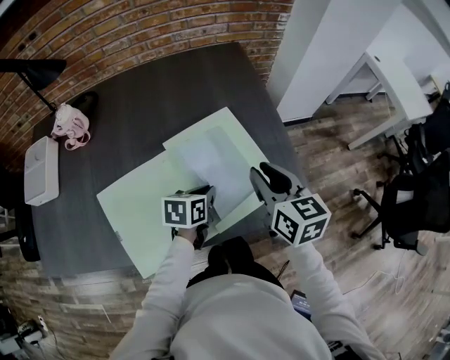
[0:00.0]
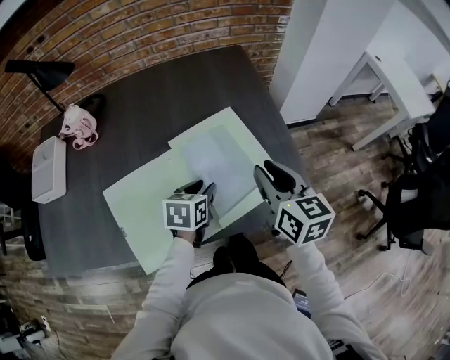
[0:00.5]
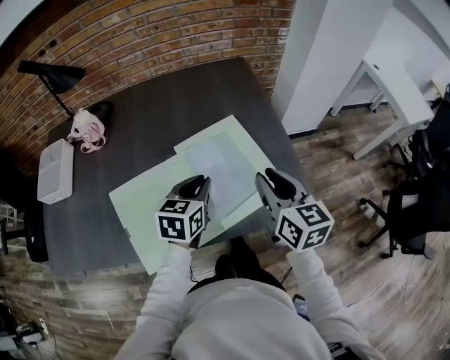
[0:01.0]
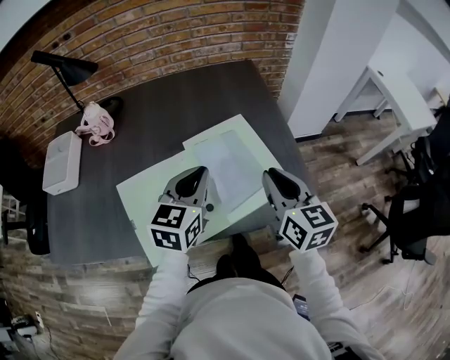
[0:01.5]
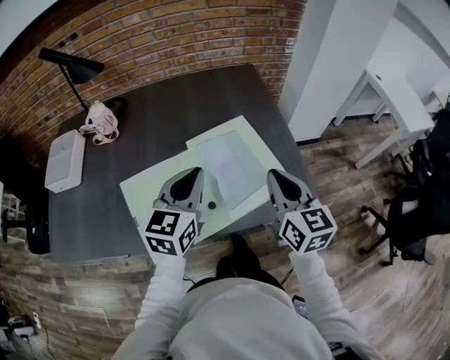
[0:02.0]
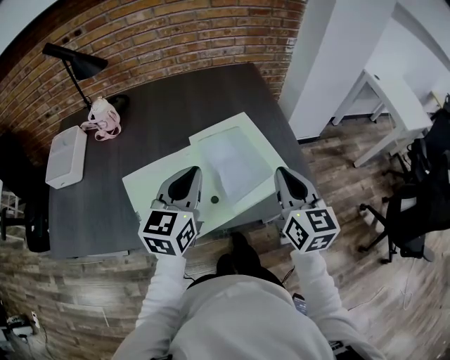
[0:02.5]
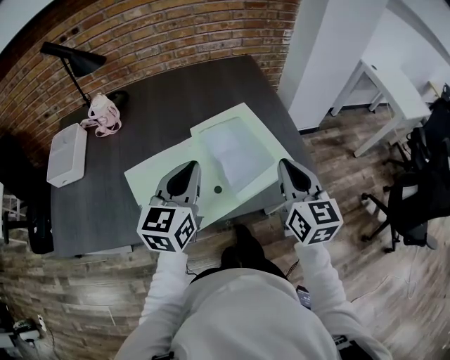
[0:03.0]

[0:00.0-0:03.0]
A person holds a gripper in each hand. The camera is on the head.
0:00.0 to 0:01.5: The right gripper shifts some 5 cm backward; the left gripper is displaced upward by some 20 cm, swivels about 40 degrees, and opens, then closes again.
0:01.5 to 0:03.0: The left gripper heads backward and to the left, covering roughly 10 cm. The right gripper moves approximately 5 cm.

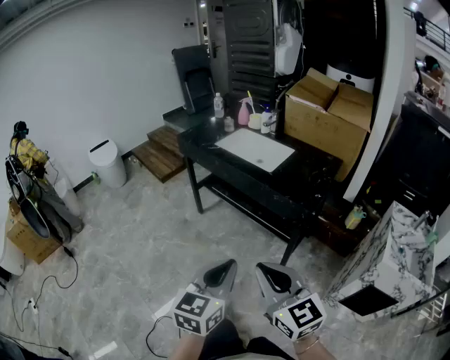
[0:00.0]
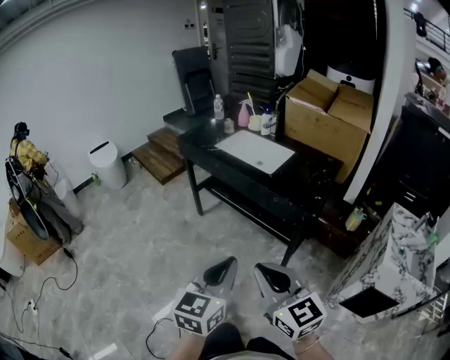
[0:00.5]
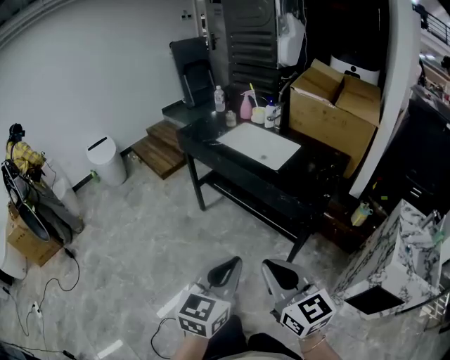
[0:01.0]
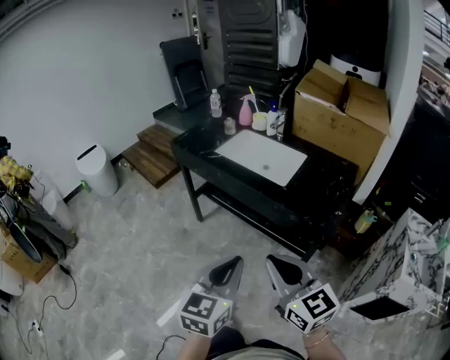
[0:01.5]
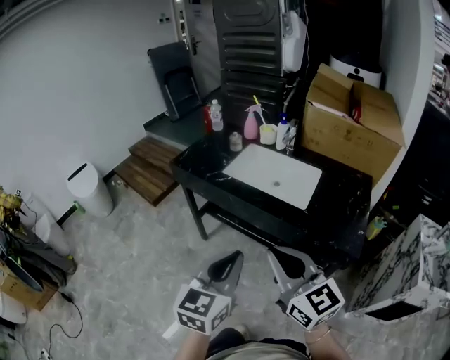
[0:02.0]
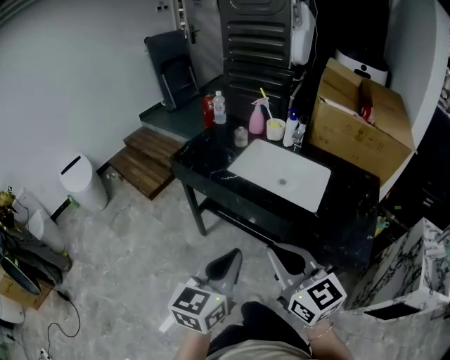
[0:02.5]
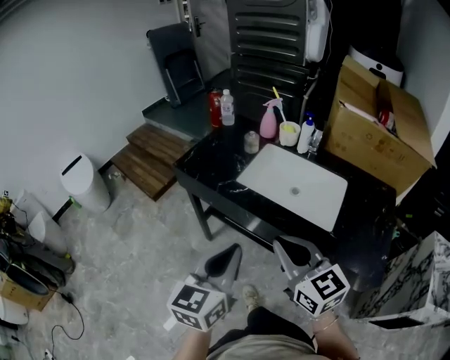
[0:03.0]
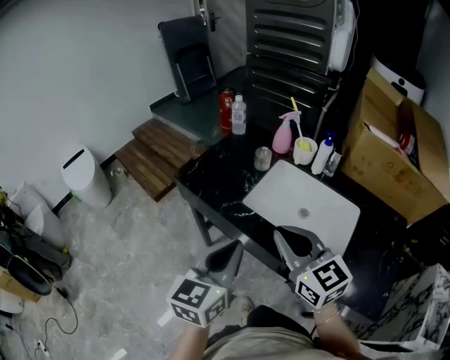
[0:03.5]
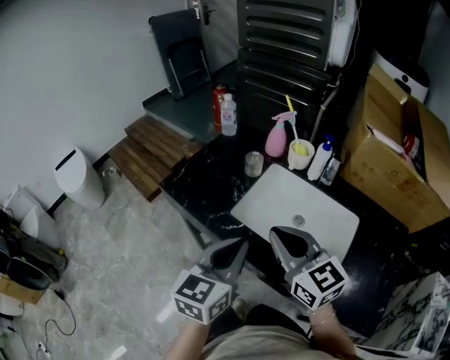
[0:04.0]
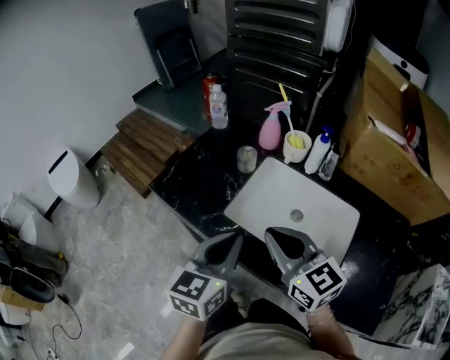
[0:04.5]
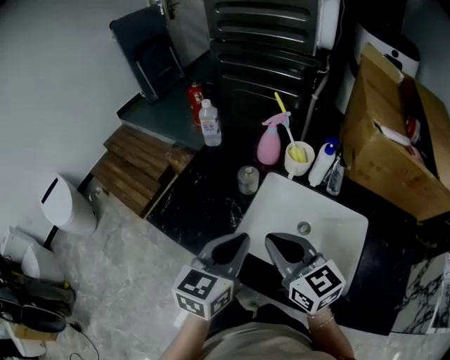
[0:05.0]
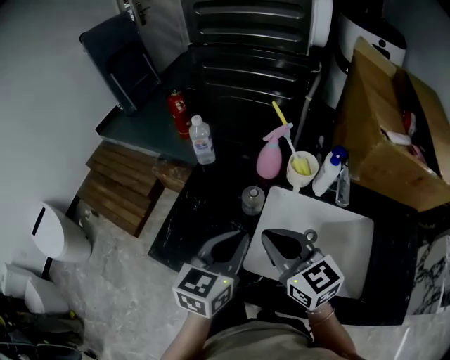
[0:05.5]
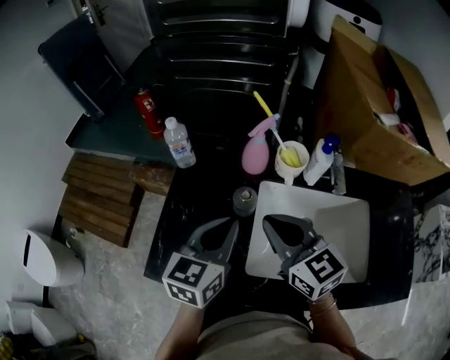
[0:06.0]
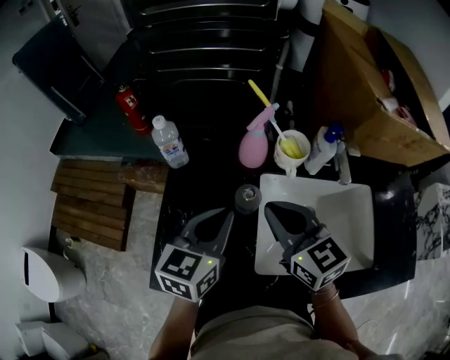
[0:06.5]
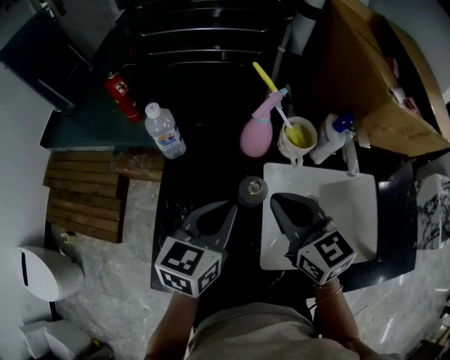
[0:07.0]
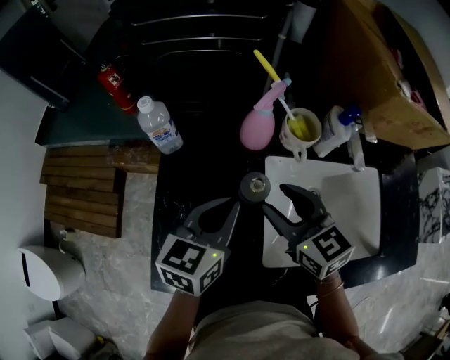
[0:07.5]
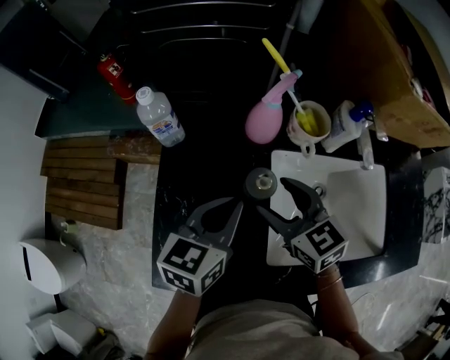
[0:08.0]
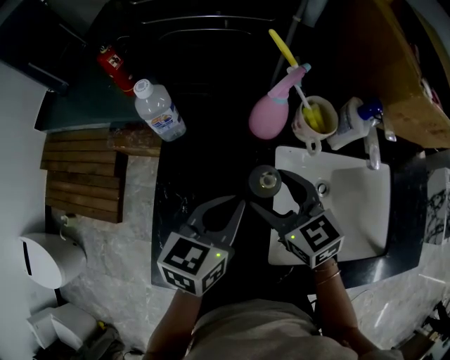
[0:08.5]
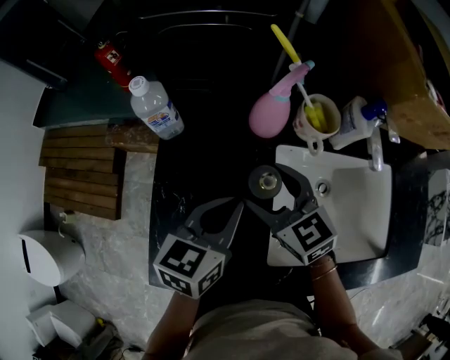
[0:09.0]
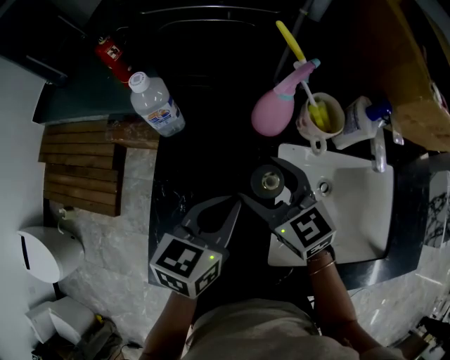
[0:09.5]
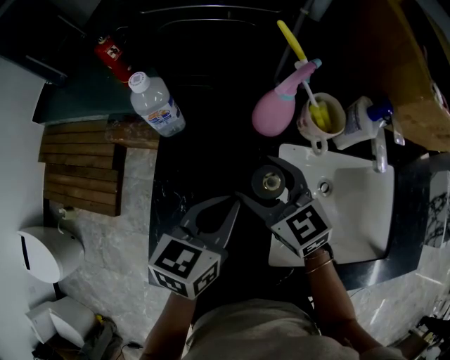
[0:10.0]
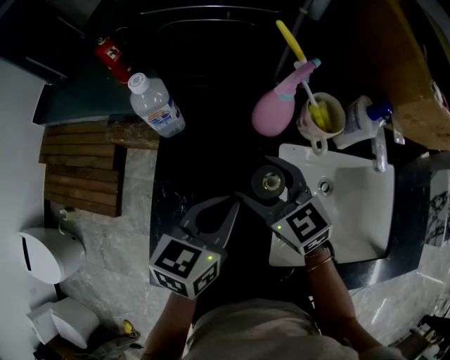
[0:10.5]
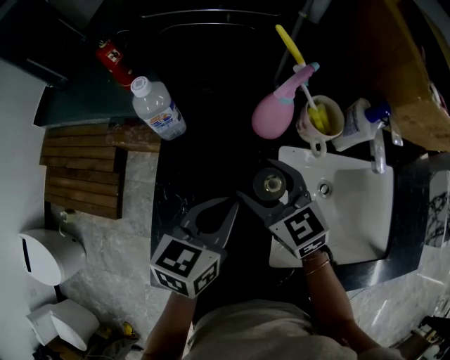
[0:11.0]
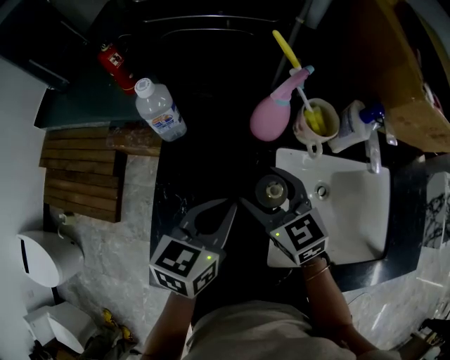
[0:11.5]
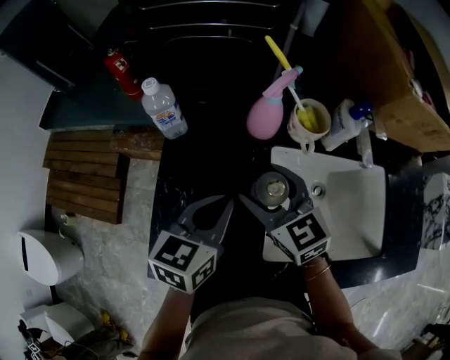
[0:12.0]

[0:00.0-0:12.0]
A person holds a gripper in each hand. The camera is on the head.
0:00.0 to 0:02.0: The grippers both shift forward by approximately 35 cm.
0:02.0 to 0:04.0: The two grippers go approximately 40 cm forward.
0:04.0 to 0:06.0: Both grippers travel together forward, approximately 25 cm. The left gripper changes its angle by about 20 degrees. The right gripper swivels about 20 degrees.
0:06.0 to 0:08.0: Both grippers move downward and forward, roughly 10 cm. The right gripper opens its fingers.
0:08.0 to 0:10.0: The right gripper travels to the left by about 5 cm.
0:10.0 to 0:12.0: The grippers move only a little.

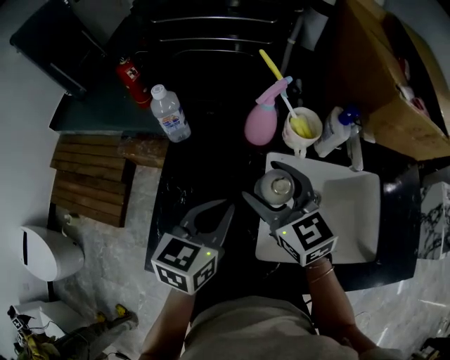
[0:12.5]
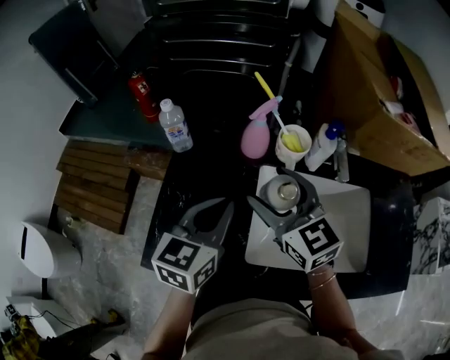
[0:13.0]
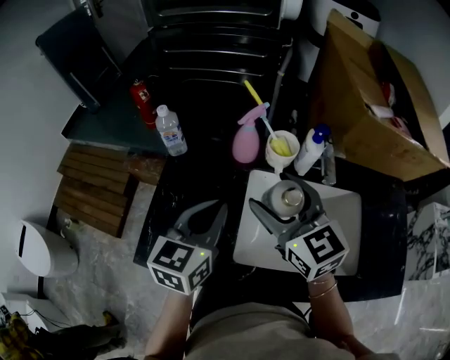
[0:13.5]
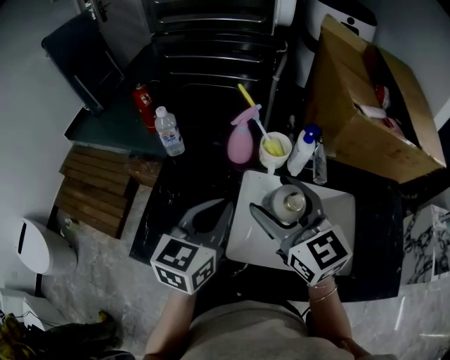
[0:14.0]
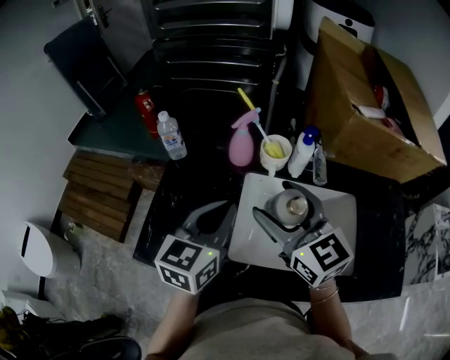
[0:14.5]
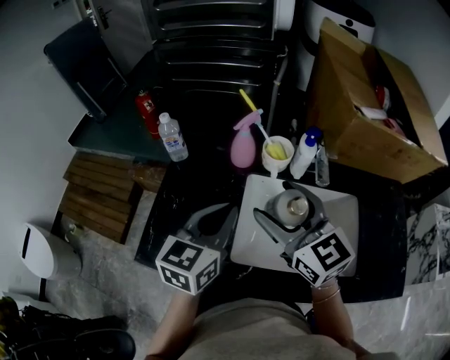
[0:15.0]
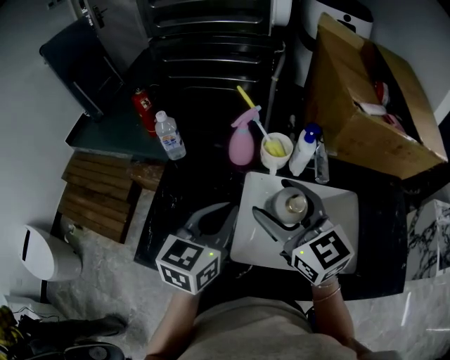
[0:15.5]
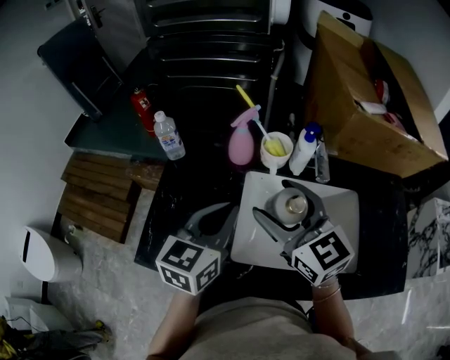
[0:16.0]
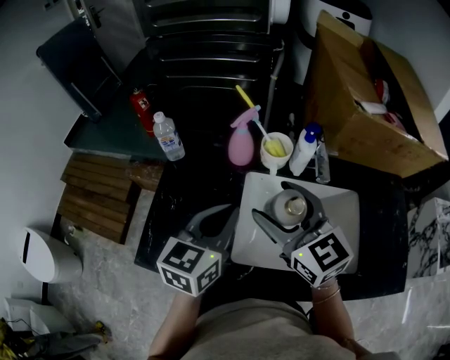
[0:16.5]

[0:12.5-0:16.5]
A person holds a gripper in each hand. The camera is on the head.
0:12.5 to 0:14.5: The left gripper moves upward and to the right, approximately 10 cm, while the right gripper is displaced upward, to the right and backward by about 15 cm.
0:14.5 to 0:16.5: The grippers make only small movements.

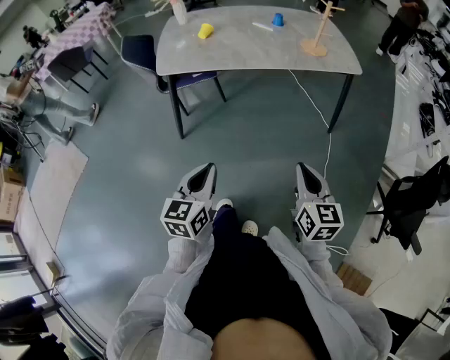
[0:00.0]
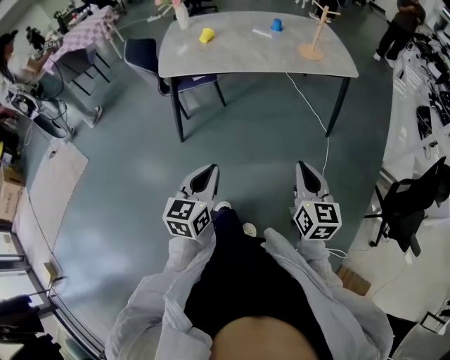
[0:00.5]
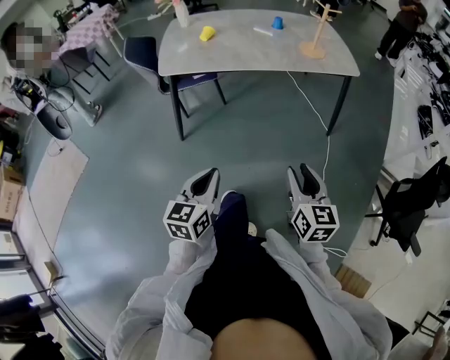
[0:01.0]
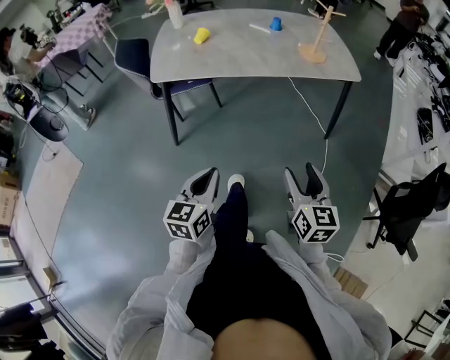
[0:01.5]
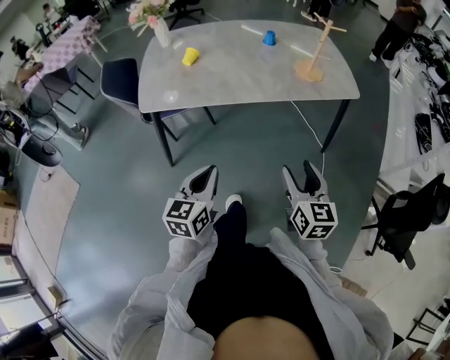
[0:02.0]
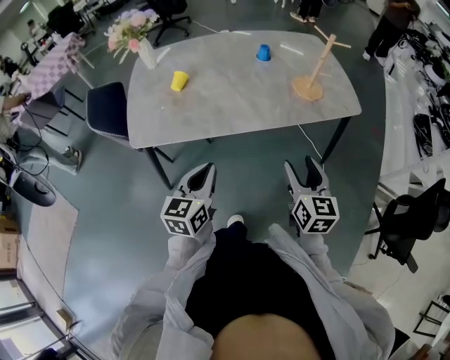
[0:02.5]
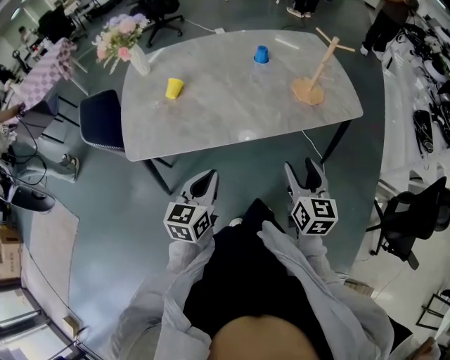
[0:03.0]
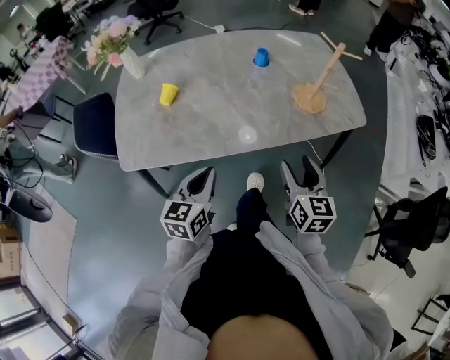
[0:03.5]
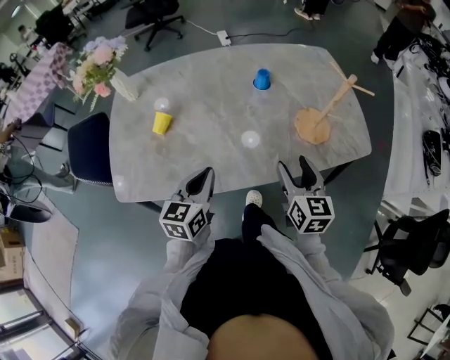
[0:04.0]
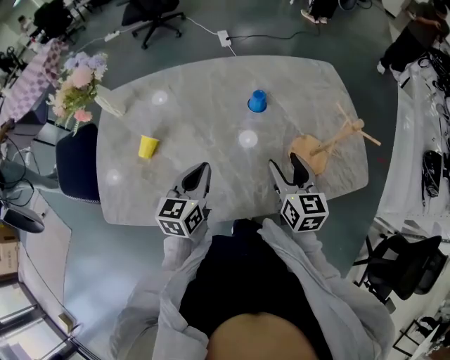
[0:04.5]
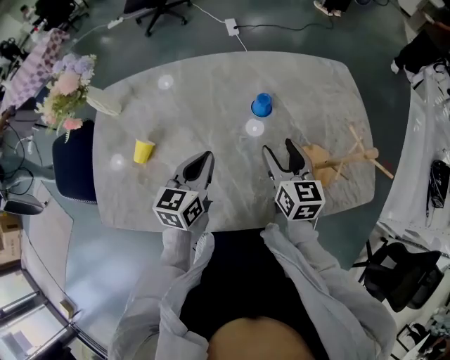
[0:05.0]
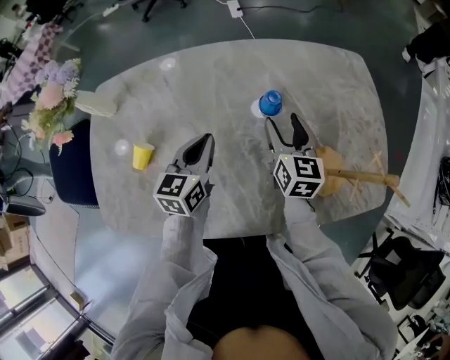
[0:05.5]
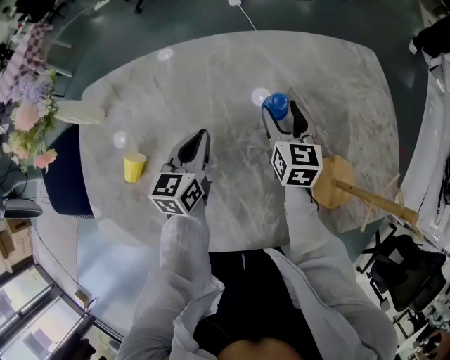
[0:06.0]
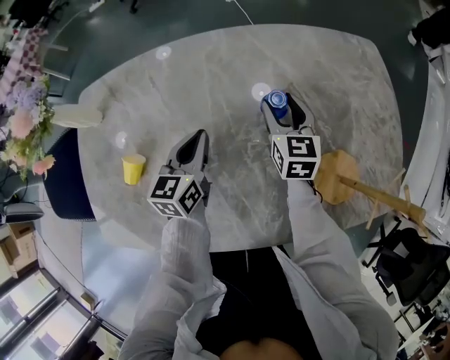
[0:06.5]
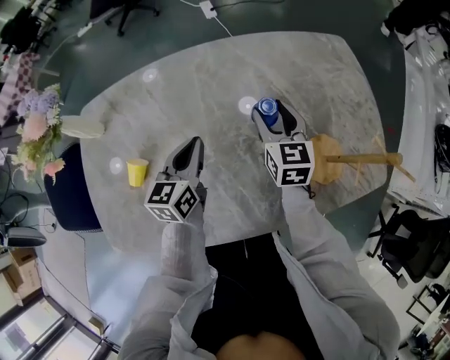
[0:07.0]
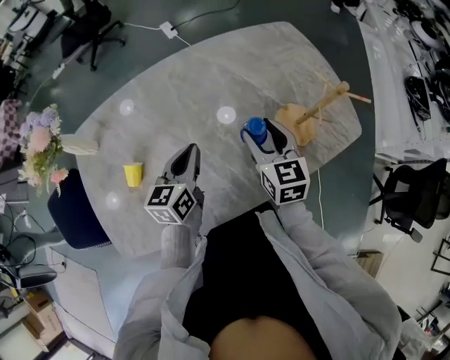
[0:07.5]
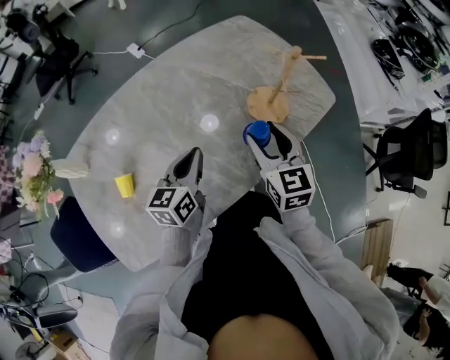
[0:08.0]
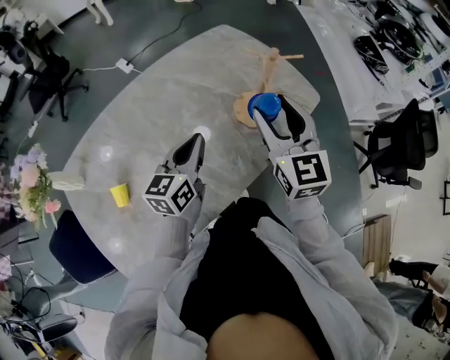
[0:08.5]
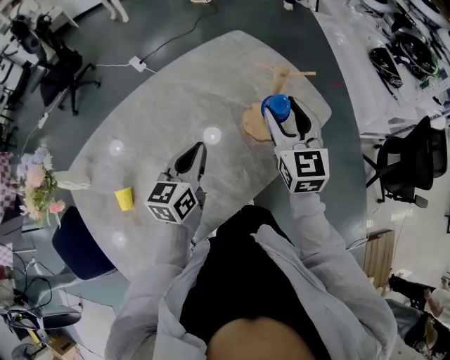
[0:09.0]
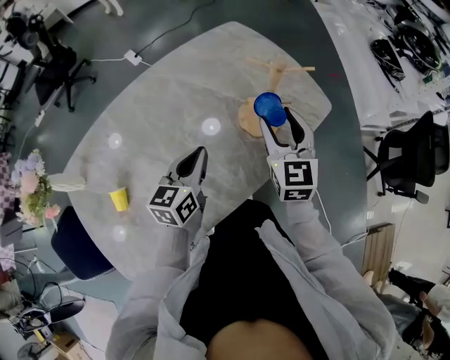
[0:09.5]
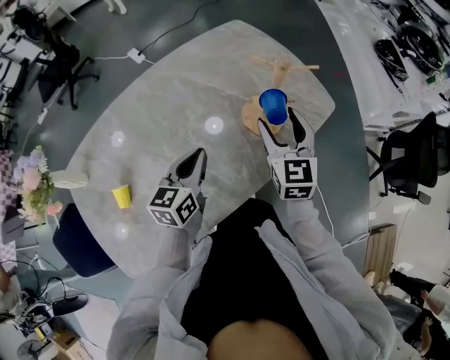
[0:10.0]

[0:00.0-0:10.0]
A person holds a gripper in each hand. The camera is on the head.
0:00.0 to 0:02.0: The two grippers go some 20 cm forward. The right gripper opens.
0:02.0 to 0:04.0: The two grippers travel together, forward, roughly 40 cm.
0:04.0 to 0:06.0: Both grippers move forward, about 35 cm.
0:06.0 to 0:08.0: The left gripper changes place by some 20 cm, and turns by roughly 30 degrees. The right gripper moves roughly 35 cm, and turns by about 20 degrees.
0:08.0 to 0:10.0: The left gripper ends up about 5 cm from where it was. The right gripper heads forward and to the right, covering approximately 10 cm, and moves about 10 cm upward and comes back.
